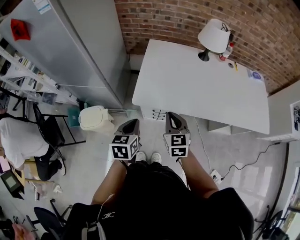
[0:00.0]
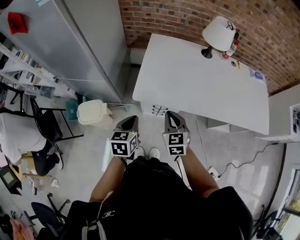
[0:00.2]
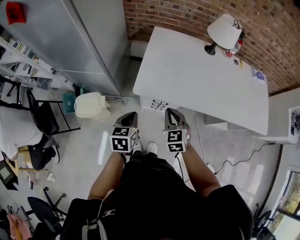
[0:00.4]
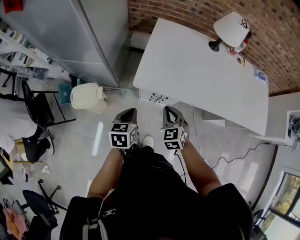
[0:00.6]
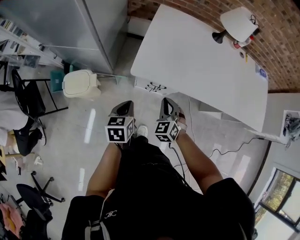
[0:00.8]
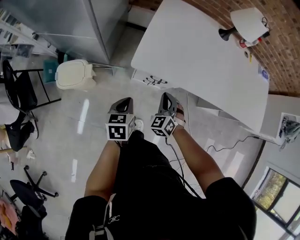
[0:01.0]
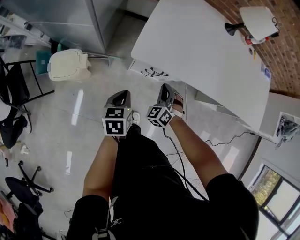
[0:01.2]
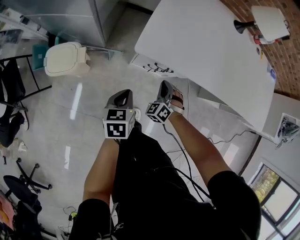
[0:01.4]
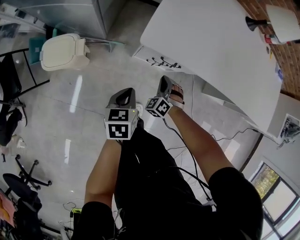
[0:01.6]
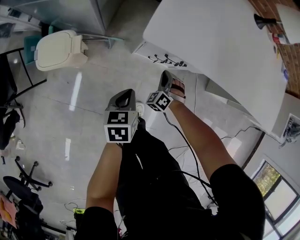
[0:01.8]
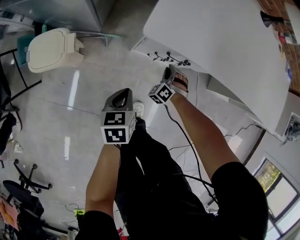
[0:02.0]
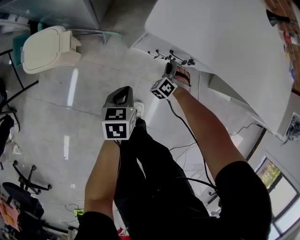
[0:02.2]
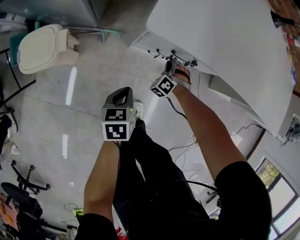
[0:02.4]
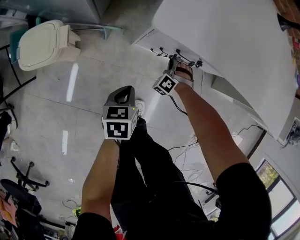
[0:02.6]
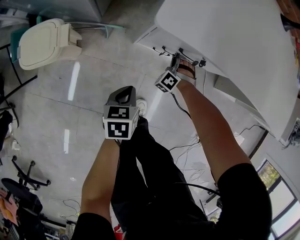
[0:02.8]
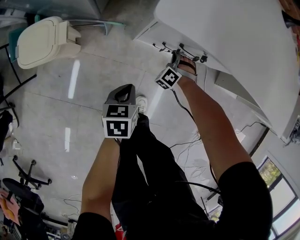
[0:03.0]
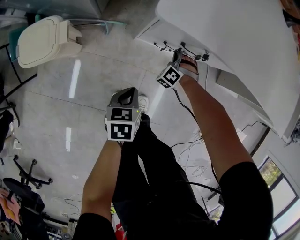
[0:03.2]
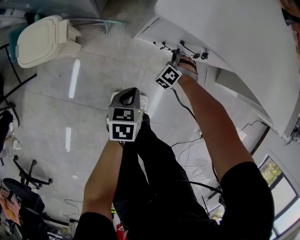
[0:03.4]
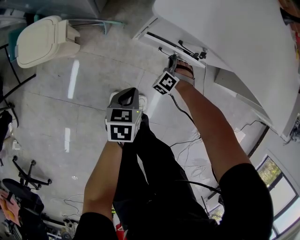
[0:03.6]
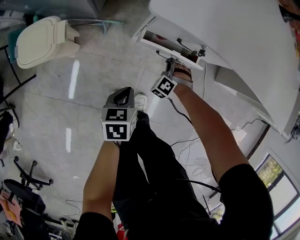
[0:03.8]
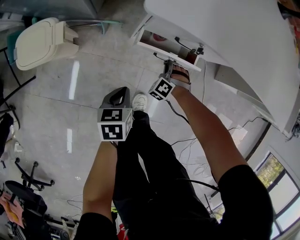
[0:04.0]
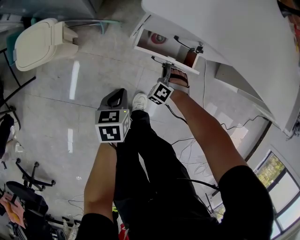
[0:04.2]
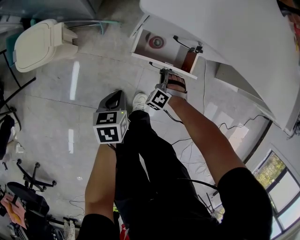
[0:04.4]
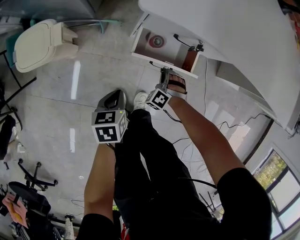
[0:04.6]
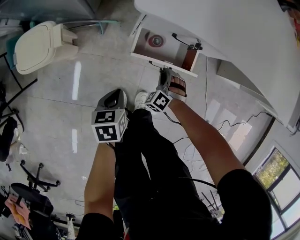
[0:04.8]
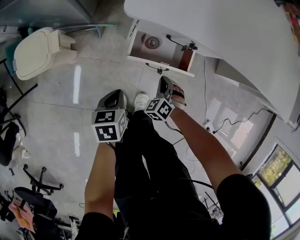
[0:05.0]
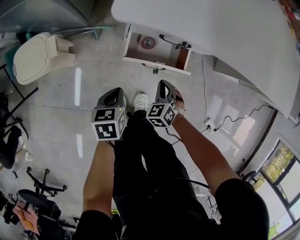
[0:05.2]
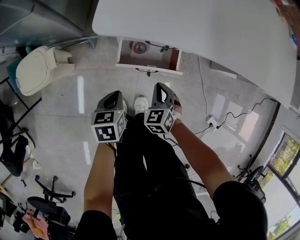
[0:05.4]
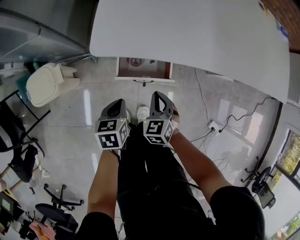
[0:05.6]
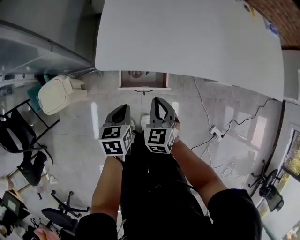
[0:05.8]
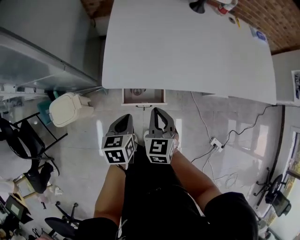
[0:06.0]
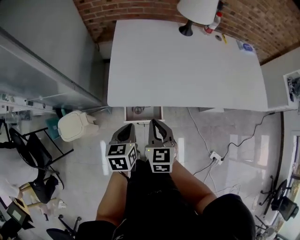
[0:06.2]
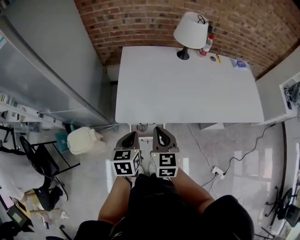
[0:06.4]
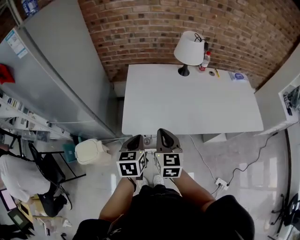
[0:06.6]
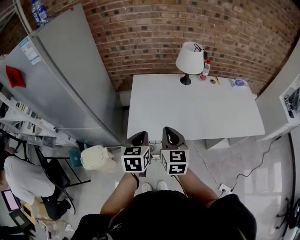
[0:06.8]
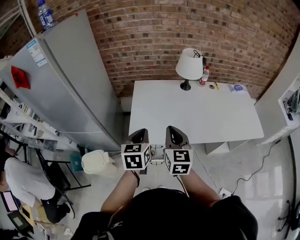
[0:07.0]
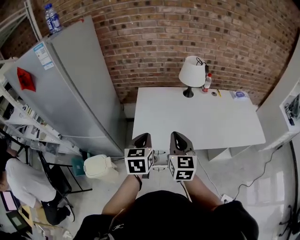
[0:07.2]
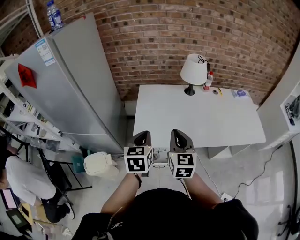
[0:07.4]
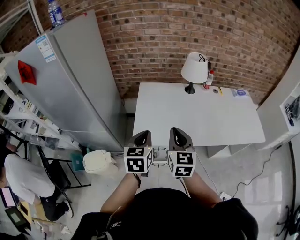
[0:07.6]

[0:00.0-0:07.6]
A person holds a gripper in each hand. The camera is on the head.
0:00.0 to 0:01.6: Both grippers travel together downward, approximately 35 cm. The right gripper rolls counterclockwise, seen from behind, by some 60 degrees.
0:01.6 to 0:03.0: The left gripper travels downward by about 20 cm, while the right gripper is displaced downward and forward by approximately 25 cm.
0:03.0 to 0:04.6: The right gripper heads backward, covering about 10 cm; the left gripper moves backward, some 5 cm.
0:04.6 to 0:06.0: The right gripper is displaced upward by about 40 cm, and rotates around the line of its fingers by approximately 70 degrees, clockwise from behind, while the left gripper travels upward by approximately 30 cm.
0:06.0 to 0:07.6: Both grippers travel together upward, approximately 30 cm. The left gripper turns by about 30 degrees. The right gripper changes its angle by some 30 degrees.

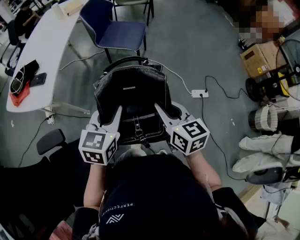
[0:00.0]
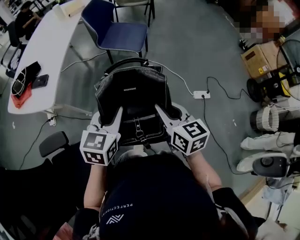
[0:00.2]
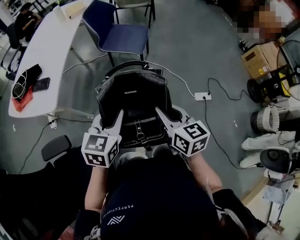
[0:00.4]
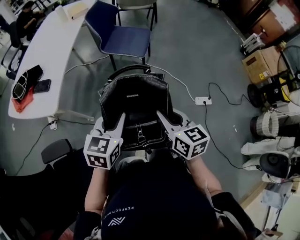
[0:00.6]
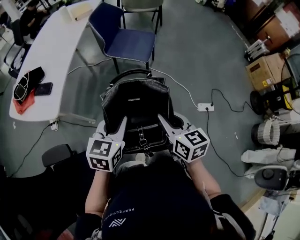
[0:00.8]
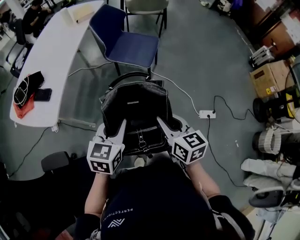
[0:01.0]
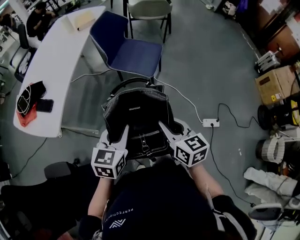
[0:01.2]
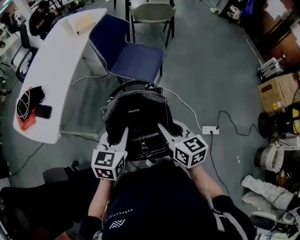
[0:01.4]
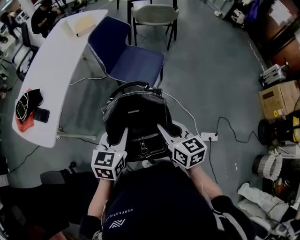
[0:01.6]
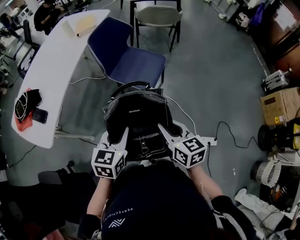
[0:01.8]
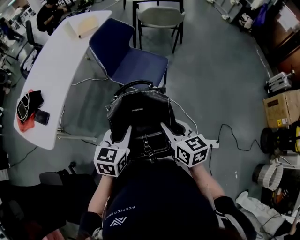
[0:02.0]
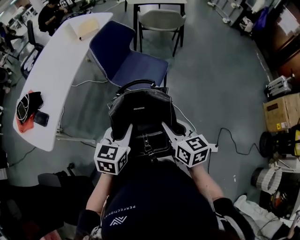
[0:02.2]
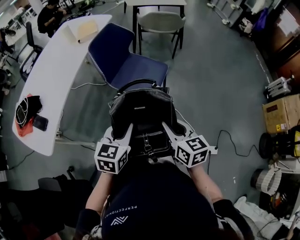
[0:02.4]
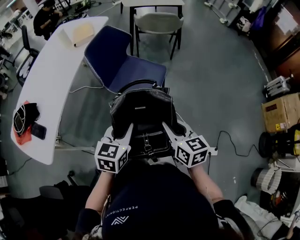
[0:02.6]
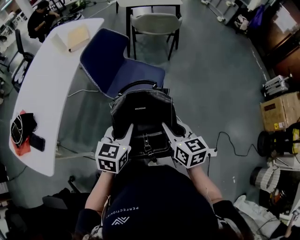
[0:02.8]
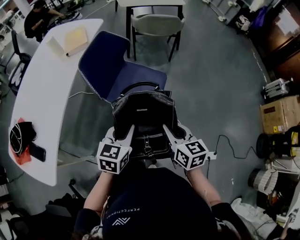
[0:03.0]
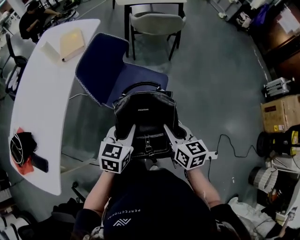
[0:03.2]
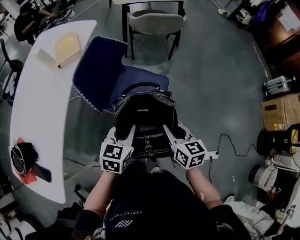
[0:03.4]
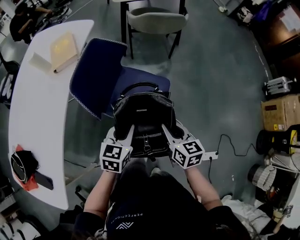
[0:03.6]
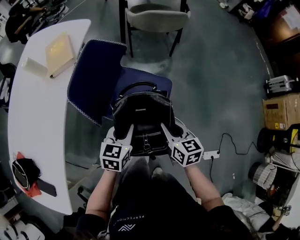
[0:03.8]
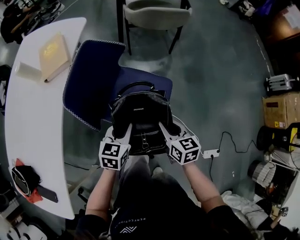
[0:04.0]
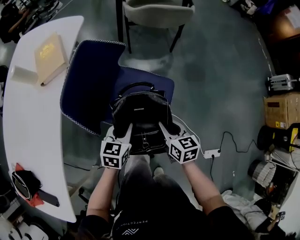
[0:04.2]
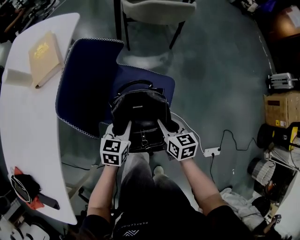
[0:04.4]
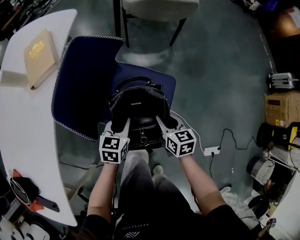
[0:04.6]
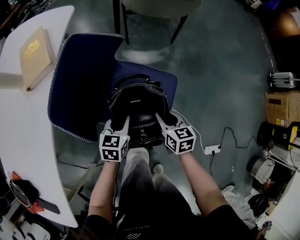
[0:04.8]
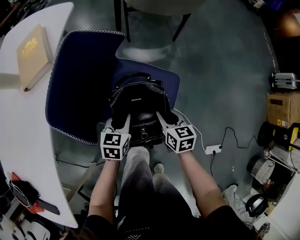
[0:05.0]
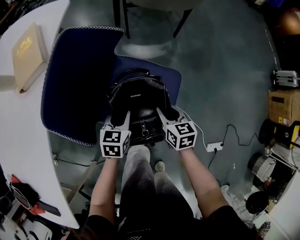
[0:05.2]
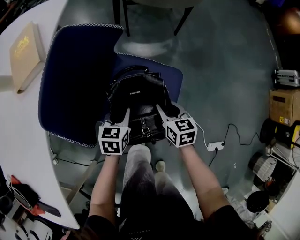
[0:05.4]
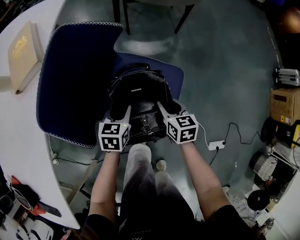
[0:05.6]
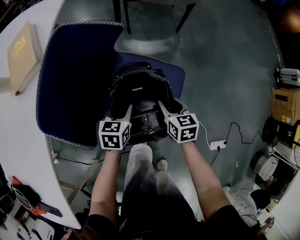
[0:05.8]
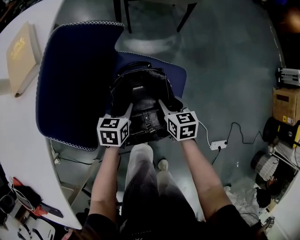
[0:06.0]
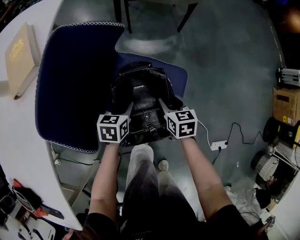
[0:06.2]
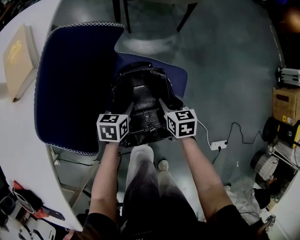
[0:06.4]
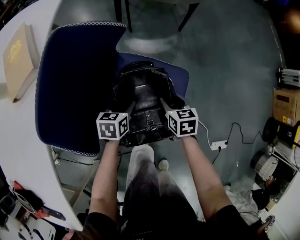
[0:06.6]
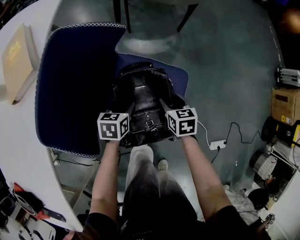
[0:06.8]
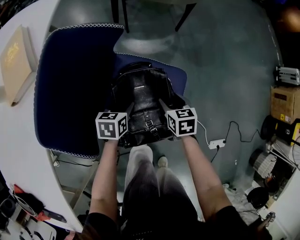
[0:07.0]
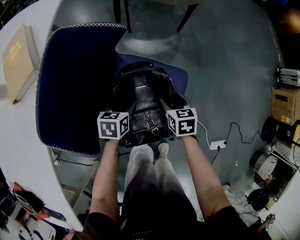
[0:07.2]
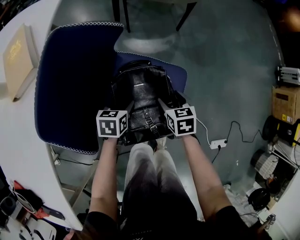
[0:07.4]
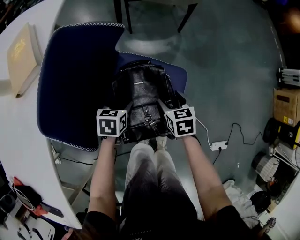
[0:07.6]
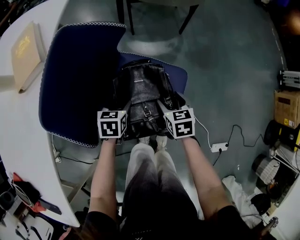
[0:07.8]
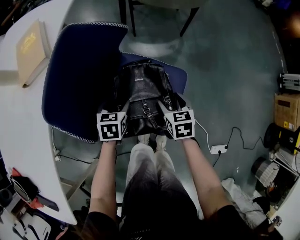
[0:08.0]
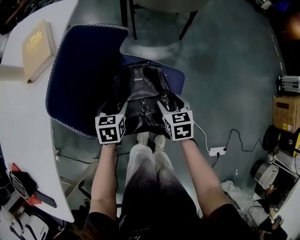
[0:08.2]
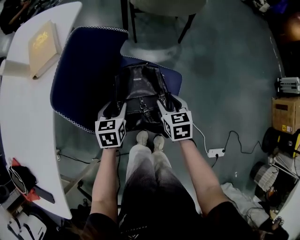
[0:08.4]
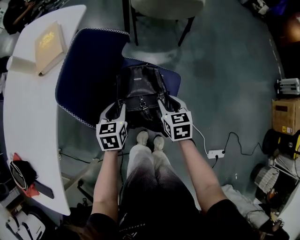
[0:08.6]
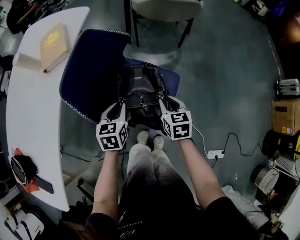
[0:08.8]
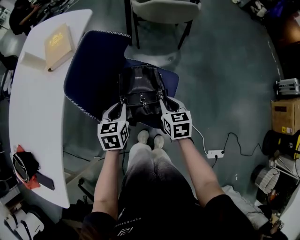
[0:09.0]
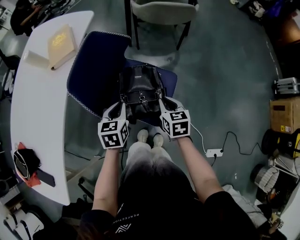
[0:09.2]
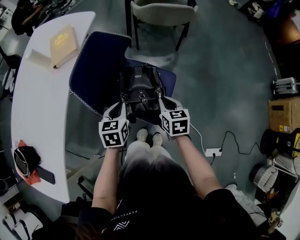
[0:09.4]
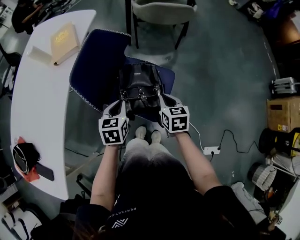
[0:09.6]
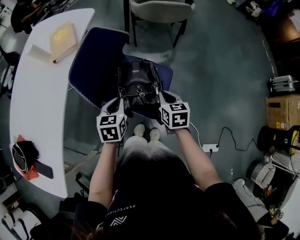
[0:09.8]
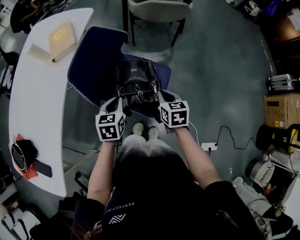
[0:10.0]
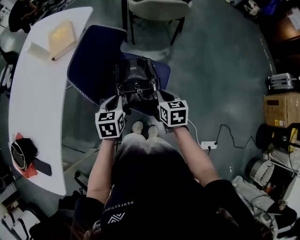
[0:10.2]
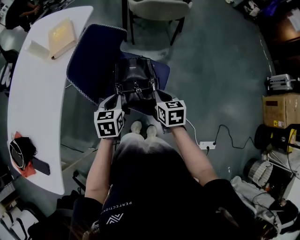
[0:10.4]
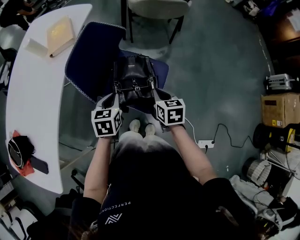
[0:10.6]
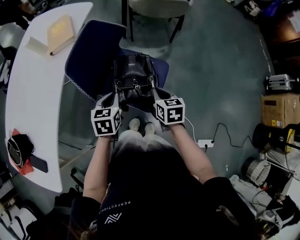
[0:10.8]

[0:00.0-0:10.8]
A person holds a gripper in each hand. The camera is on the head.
0:00.0 to 0:01.6: Both grippers travel together forward, approximately 25 cm.
0:01.6 to 0:03.0: The two grippers go approximately 25 cm forward.
0:03.0 to 0:04.6: Both grippers move forward and downward, some 30 cm.
0:04.6 to 0:06.2: Both grippers move downward and forward, approximately 15 cm.
0:06.2 to 0:07.8: The left gripper opens up, while the right gripper opens.
0:07.8 to 0:09.2: Both grippers move upward and backward, approximately 20 cm. The right gripper closes its fingers. Meanwhile the left gripper closes.
0:09.2 to 0:10.8: The grippers move only a little.

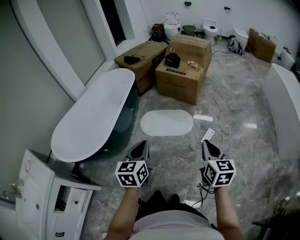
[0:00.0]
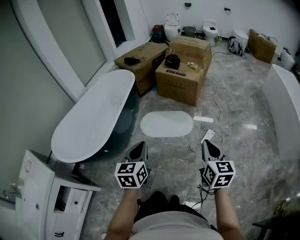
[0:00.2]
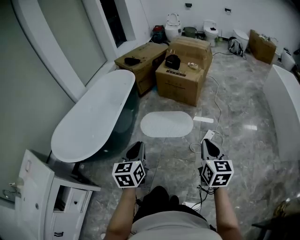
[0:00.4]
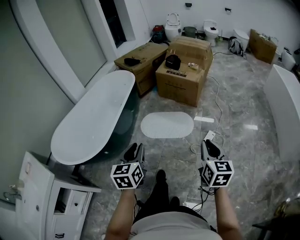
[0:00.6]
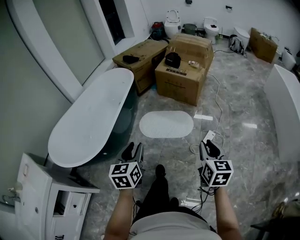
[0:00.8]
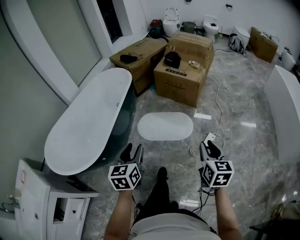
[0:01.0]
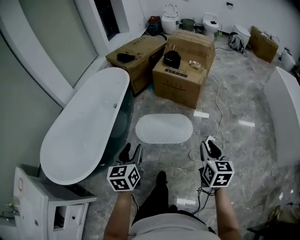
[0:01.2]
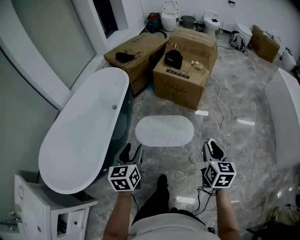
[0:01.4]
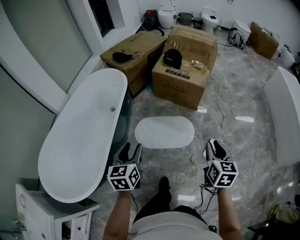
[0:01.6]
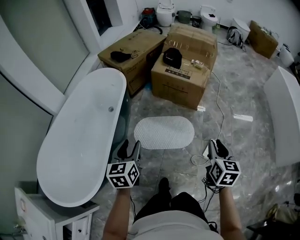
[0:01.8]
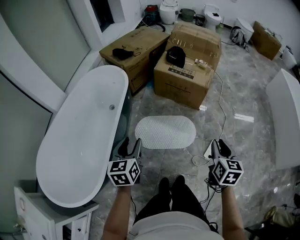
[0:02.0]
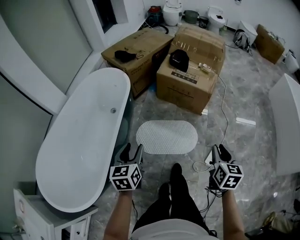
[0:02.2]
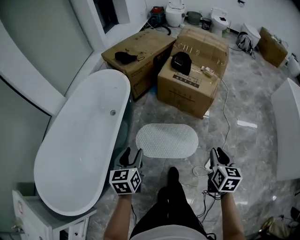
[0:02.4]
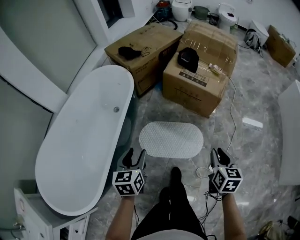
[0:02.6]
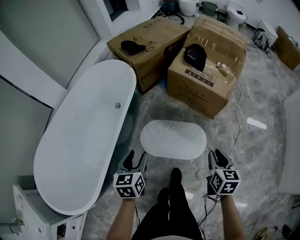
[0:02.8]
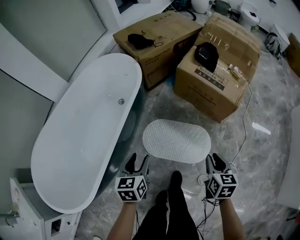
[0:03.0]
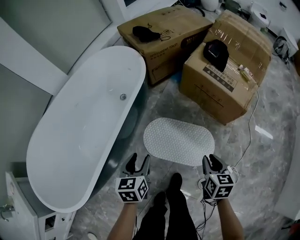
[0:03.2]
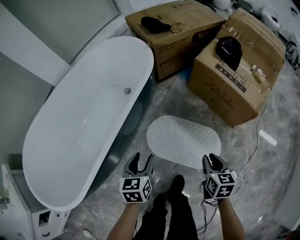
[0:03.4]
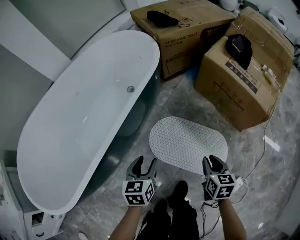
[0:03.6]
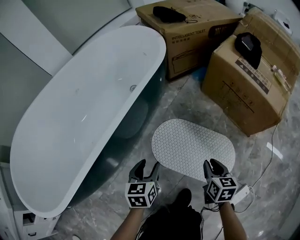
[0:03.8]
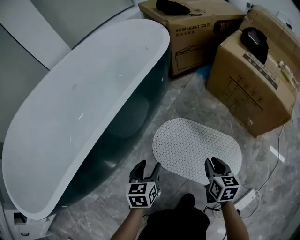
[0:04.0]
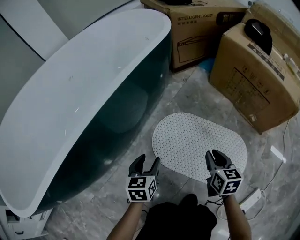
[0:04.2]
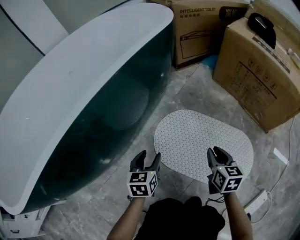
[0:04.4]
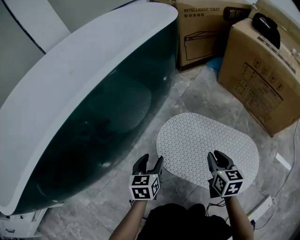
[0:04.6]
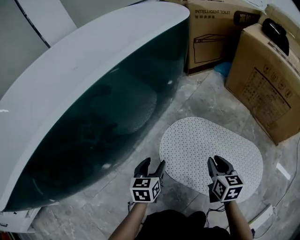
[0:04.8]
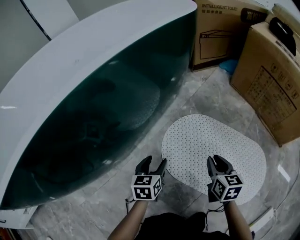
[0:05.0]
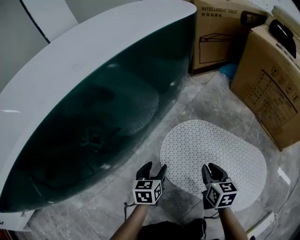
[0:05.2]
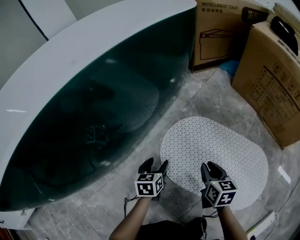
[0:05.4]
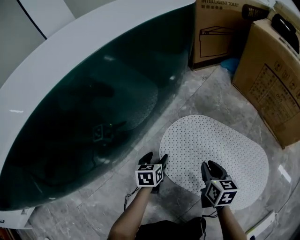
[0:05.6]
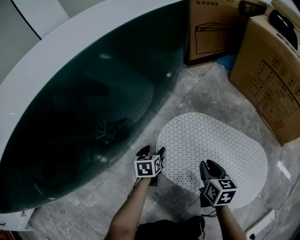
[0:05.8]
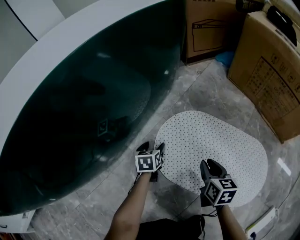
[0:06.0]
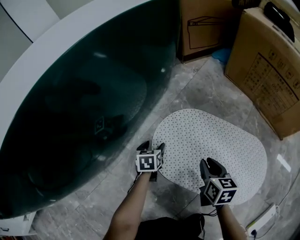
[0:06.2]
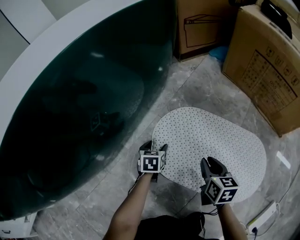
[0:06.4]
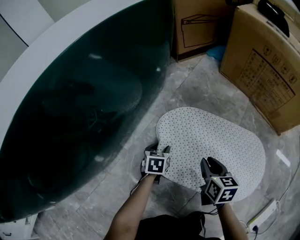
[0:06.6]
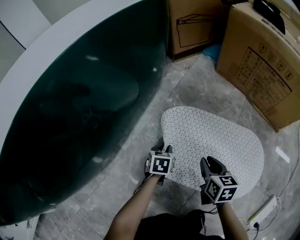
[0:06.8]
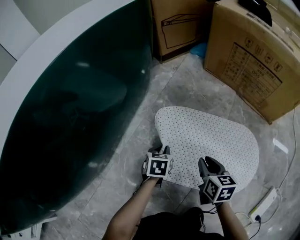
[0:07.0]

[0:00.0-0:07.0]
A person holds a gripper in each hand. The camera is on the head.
0:00.0 to 0:01.4: The grippers both shift forward by roughly 25 cm. The right gripper opens. The left gripper opens its fingers.
0:01.4 to 0:02.8: Both grippers travel together forward and downward, approximately 25 cm.
0:02.8 to 0:04.2: Both grippers move downward, some 50 cm. The right gripper turns by some 20 degrees.
0:04.2 to 0:05.6: The right gripper heads downward and to the left, covering about 20 cm. Meanwhile the left gripper goes roughly 25 cm downward.
0:05.6 to 0:07.0: The right gripper is displaced to the right by roughly 5 cm. The left gripper goes approximately 10 cm to the right, swivels about 20 degrees, and closes.
